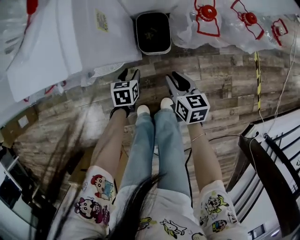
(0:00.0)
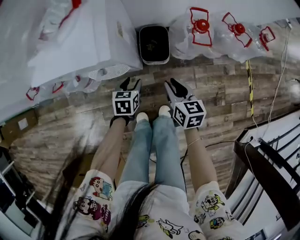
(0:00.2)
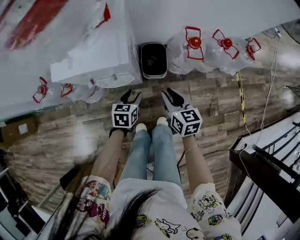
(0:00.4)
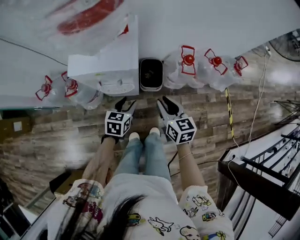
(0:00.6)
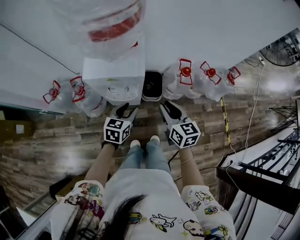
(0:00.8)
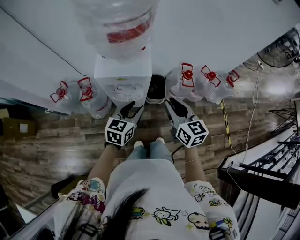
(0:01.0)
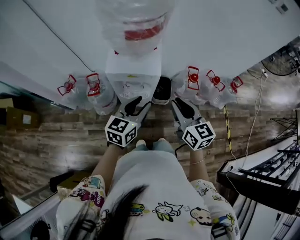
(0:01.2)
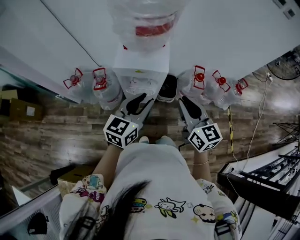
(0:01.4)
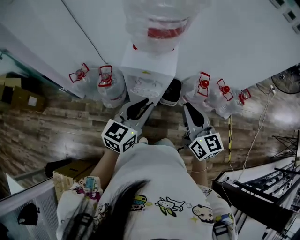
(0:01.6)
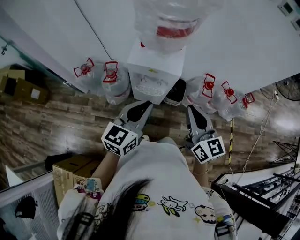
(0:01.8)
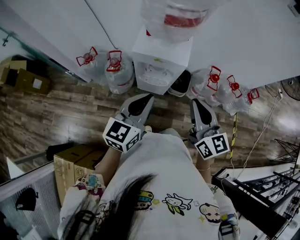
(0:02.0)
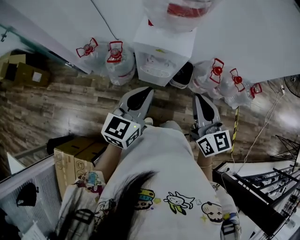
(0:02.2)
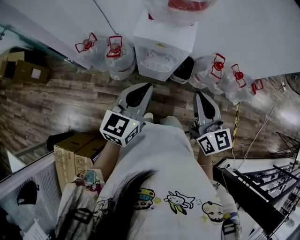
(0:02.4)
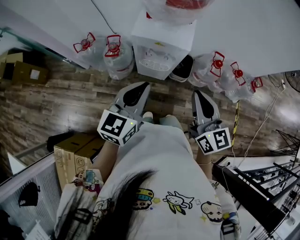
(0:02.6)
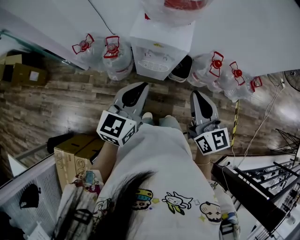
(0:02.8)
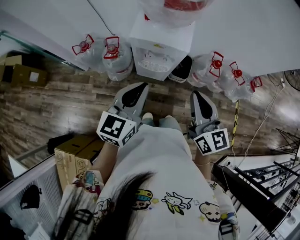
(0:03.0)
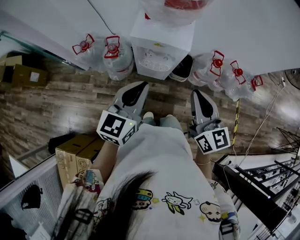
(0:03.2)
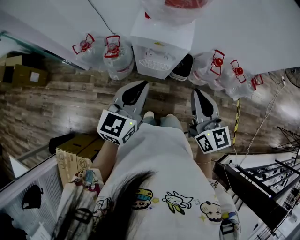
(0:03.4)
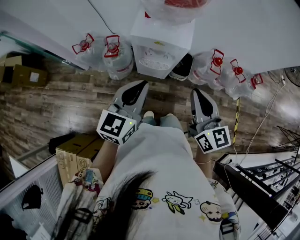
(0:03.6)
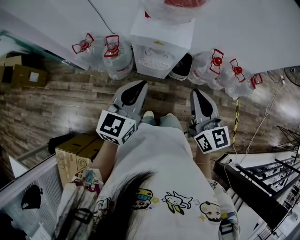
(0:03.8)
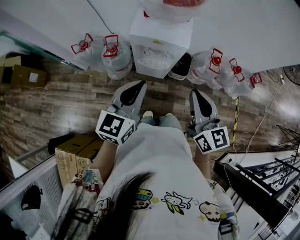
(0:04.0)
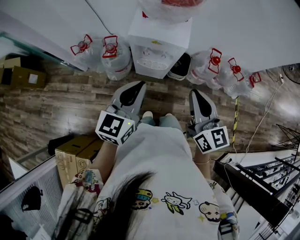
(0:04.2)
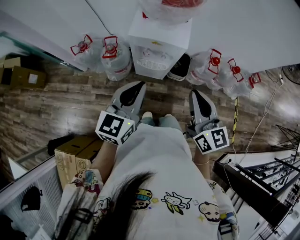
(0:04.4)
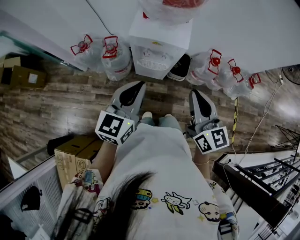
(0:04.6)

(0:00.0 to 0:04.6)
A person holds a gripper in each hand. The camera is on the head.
0:00.0 - 0:01.6: Both grippers move upward, about 50 cm. The left gripper tilts its fingers some 50 degrees upward, and closes its fingers, while the right gripper tips its fingers upward by roughly 30 degrees.
0:01.6 - 0:03.0: The left gripper ends up some 5 cm from where it was.
0:03.0 - 0:04.6: Both grippers stay about where they are.

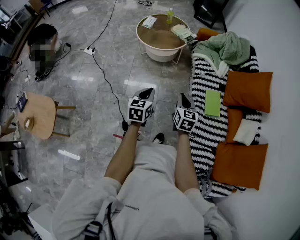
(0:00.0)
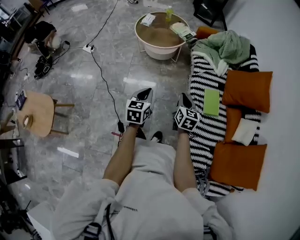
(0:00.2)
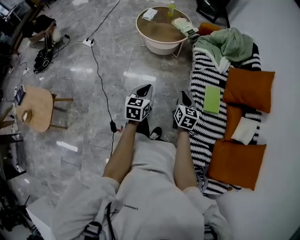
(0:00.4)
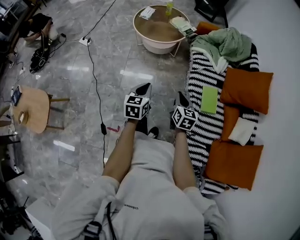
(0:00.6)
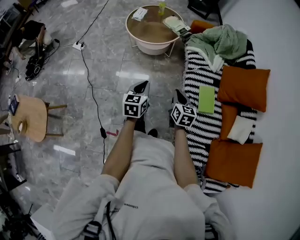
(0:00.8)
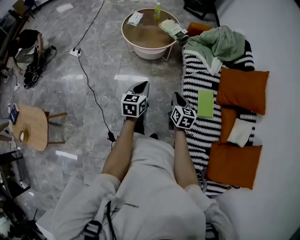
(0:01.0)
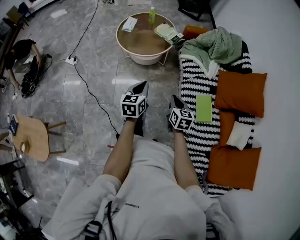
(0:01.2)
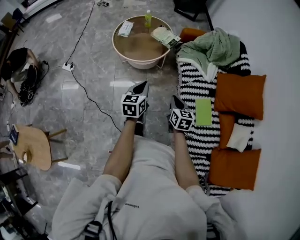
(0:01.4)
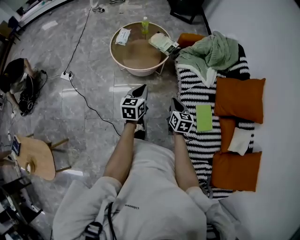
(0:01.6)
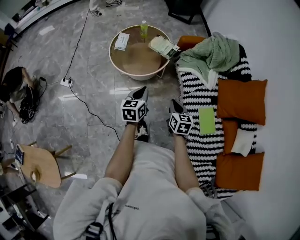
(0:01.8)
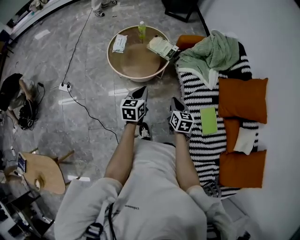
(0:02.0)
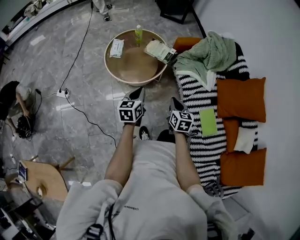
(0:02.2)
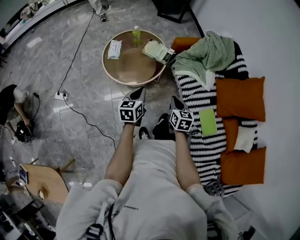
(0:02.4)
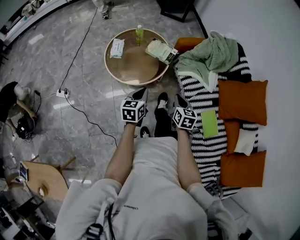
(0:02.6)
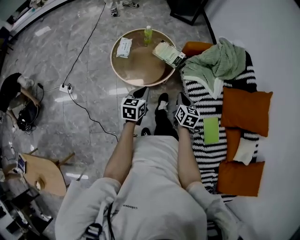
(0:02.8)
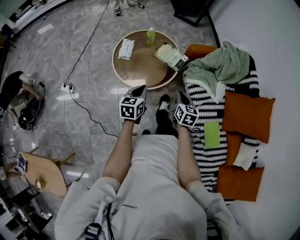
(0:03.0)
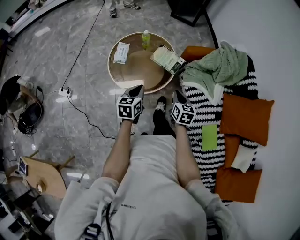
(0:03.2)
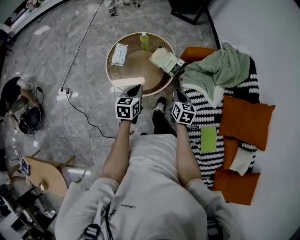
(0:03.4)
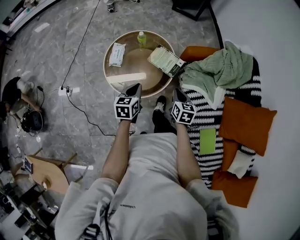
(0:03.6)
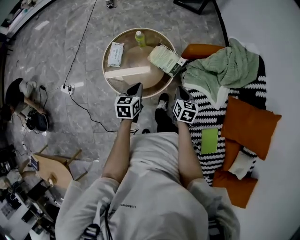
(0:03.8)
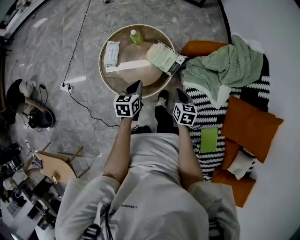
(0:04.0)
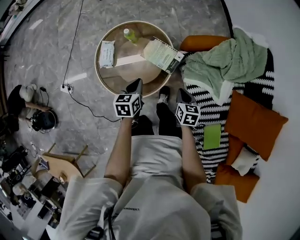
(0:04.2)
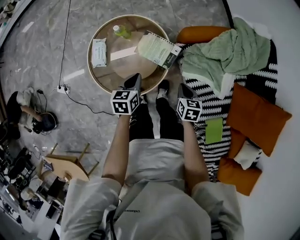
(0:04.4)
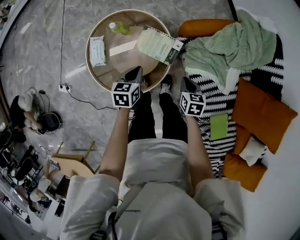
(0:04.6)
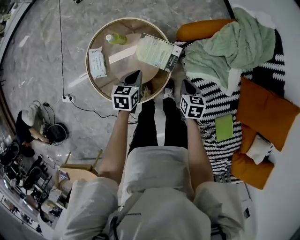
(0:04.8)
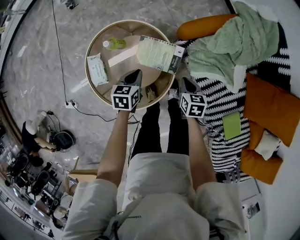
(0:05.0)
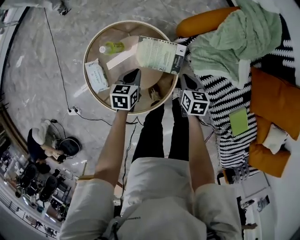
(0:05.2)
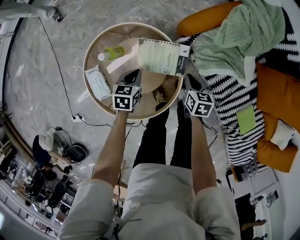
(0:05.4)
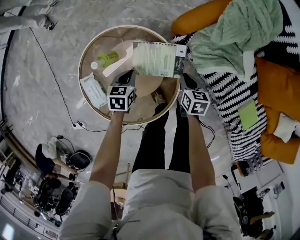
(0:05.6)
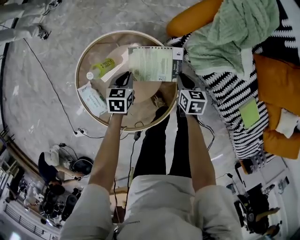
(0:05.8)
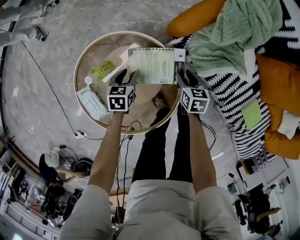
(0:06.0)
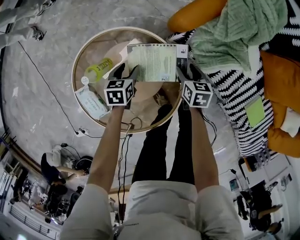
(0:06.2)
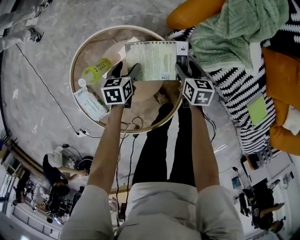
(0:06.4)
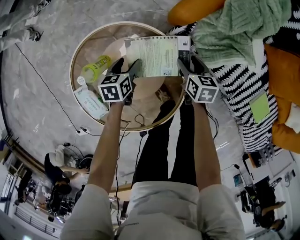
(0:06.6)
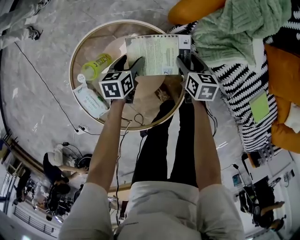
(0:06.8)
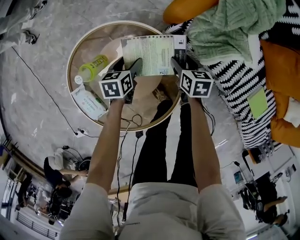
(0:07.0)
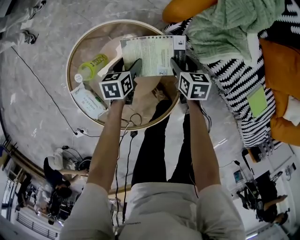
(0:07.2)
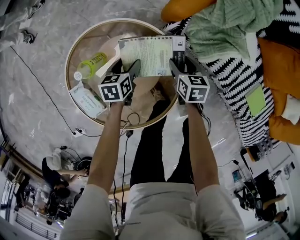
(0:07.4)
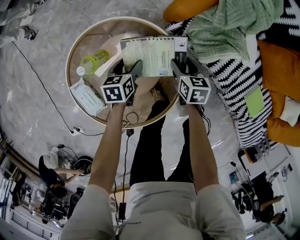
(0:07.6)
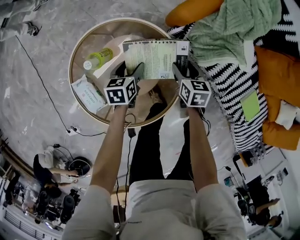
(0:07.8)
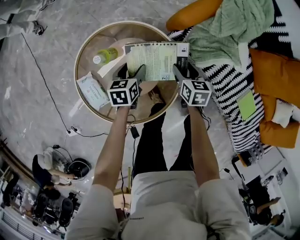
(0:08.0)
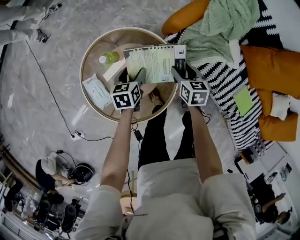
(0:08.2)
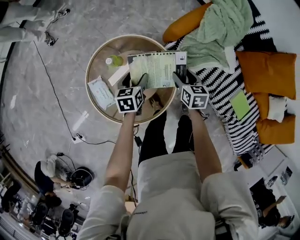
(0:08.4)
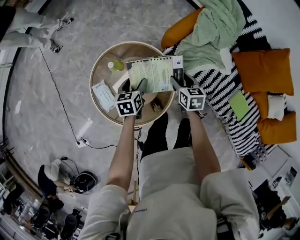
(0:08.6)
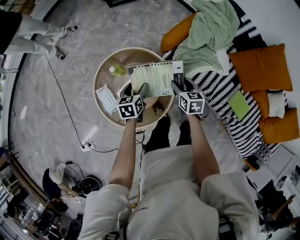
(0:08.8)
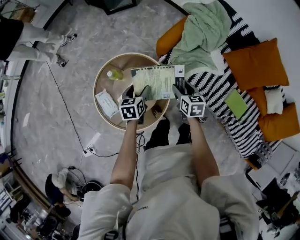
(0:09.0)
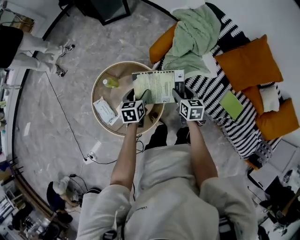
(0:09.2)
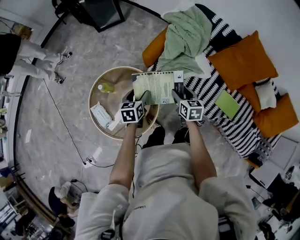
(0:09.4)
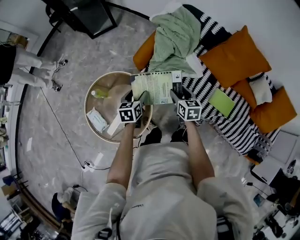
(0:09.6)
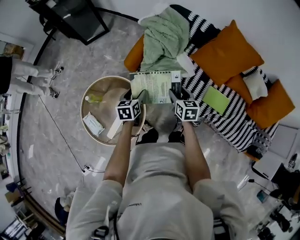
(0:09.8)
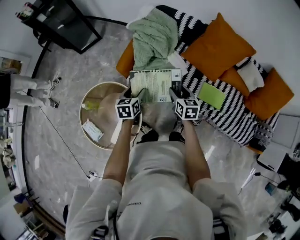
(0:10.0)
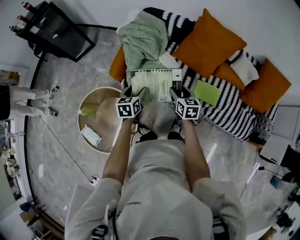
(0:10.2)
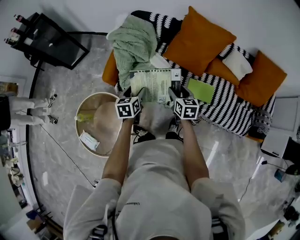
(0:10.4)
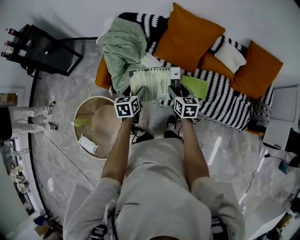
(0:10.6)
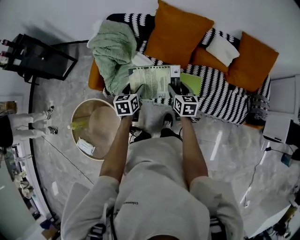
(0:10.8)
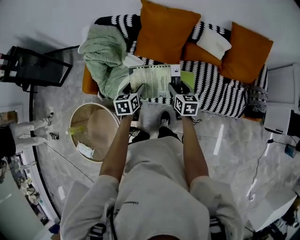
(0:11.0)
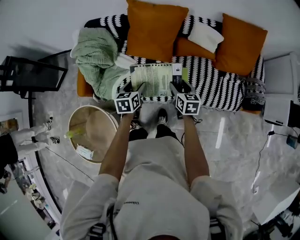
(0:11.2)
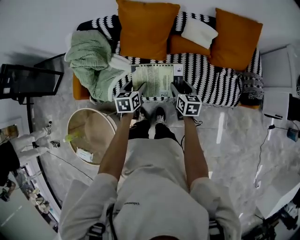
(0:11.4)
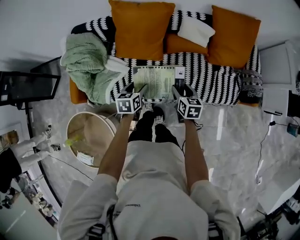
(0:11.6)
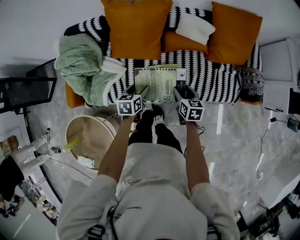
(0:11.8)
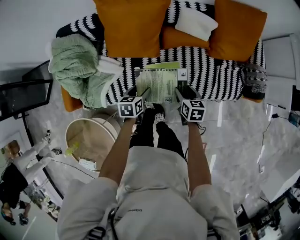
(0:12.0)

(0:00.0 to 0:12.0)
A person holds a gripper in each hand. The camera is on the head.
0:00.0 - 0:01.6: Both grippers move forward, some 30 cm.
0:01.6 - 0:03.0: Both grippers move forward and to the left, roughly 20 cm.
0:03.0 - 0:04.4: The left gripper goes some 30 cm forward and downward. The right gripper is displaced forward, downward and to the right by about 25 cm, and swivels some 20 degrees.
0:04.4 - 0:06.0: The grippers both shift downward by about 20 cm. The left gripper changes its angle by roughly 40 degrees, and opens. The right gripper swivels roughly 30 degrees, and opens.
0:06.0 - 0:07.6: The left gripper opens.
0:07.6 - 0:09.0: The grippers both shift upward by some 25 cm.
0:09.0 - 0:10.4: The right gripper ends up some 40 cm from where it was, and swivels approximately 30 degrees, while the left gripper changes place by approximately 40 cm, and swivels about 30 degrees.
0:10.4 - 0:12.0: The left gripper changes place by about 35 cm, and swivels some 30 degrees. Meanwhile the right gripper ends up about 35 cm from where it was, and changes its angle by roughly 30 degrees.

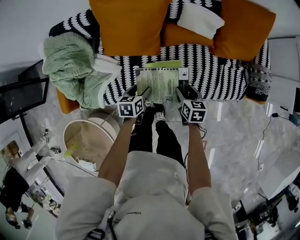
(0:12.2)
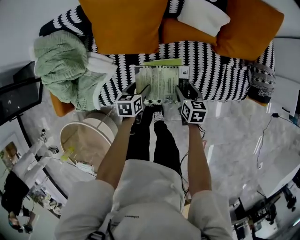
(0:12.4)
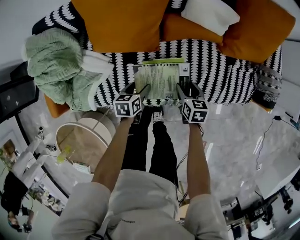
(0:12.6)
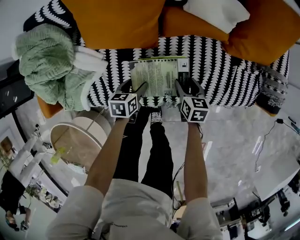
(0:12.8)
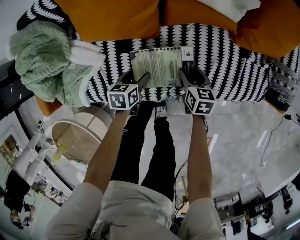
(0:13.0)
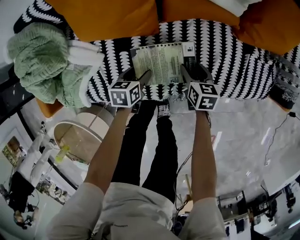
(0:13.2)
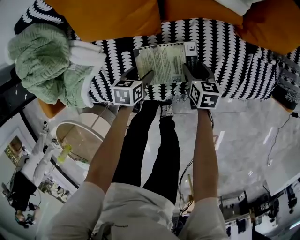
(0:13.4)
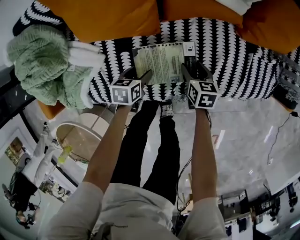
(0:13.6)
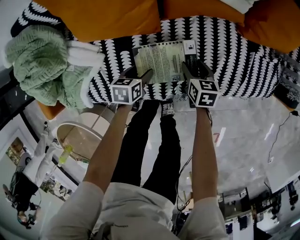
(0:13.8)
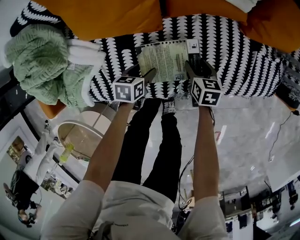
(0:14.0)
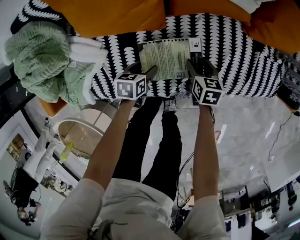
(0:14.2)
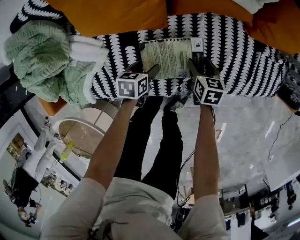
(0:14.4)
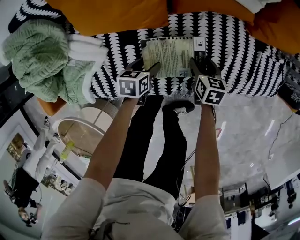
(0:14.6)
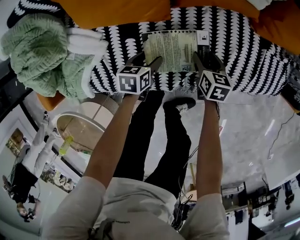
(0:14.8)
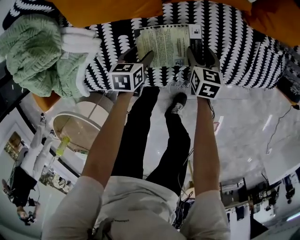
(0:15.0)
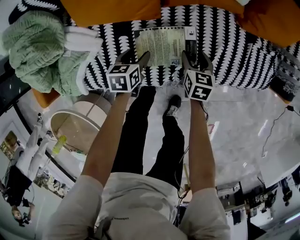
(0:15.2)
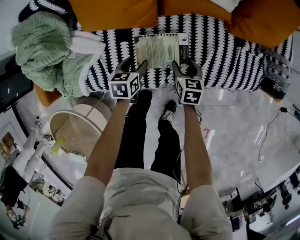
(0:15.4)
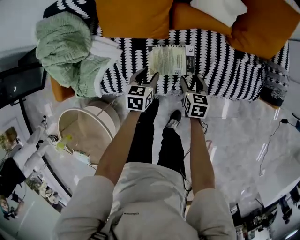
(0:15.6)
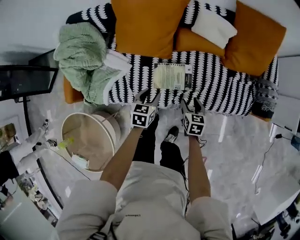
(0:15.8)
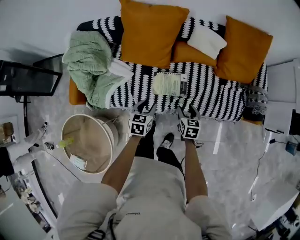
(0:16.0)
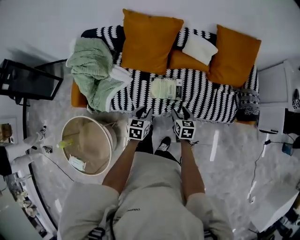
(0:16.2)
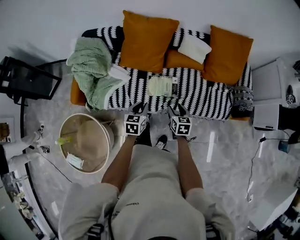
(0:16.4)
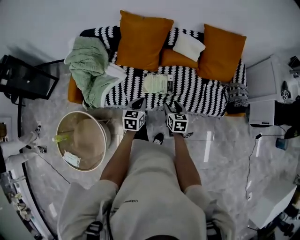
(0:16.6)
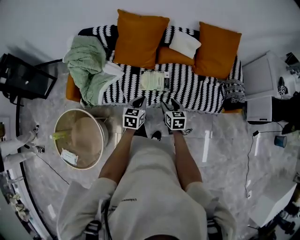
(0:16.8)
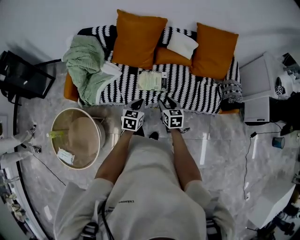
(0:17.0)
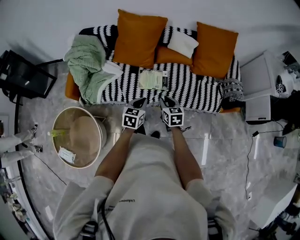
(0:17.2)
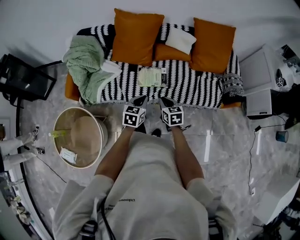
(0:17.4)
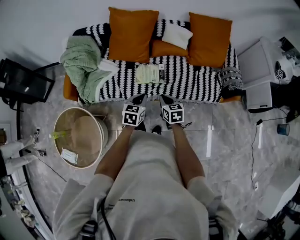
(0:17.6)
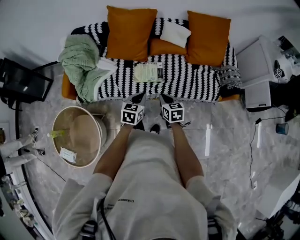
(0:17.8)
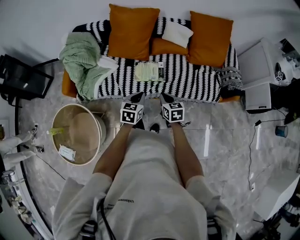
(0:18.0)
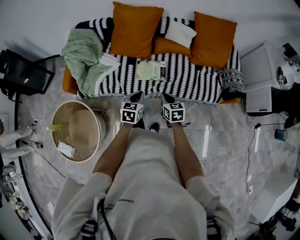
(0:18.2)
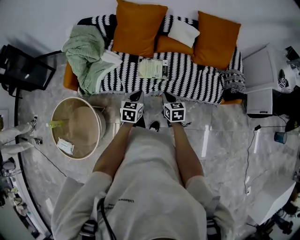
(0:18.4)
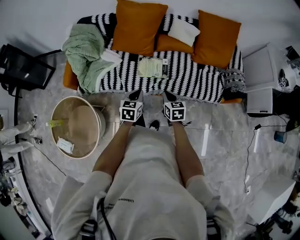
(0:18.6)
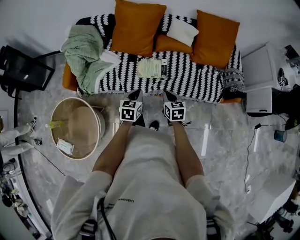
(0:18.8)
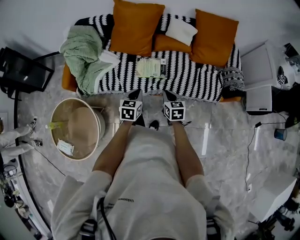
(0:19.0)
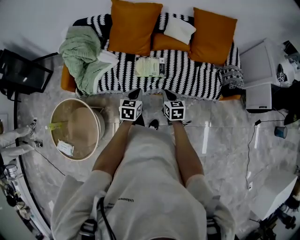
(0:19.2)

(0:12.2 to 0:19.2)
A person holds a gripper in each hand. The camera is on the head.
0:12.2 - 0:13.6: The two grippers go some 25 cm downward.
0:13.6 - 0:15.0: The grippers move only a little.
0:15.0 - 0:16.4: The grippers both shift upward and backward by approximately 40 cm. The left gripper rotates some 20 degrees, and closes up.
0:16.4 - 0:17.8: The left gripper travels to the right and backward by approximately 15 cm, while the right gripper moves backward, some 10 cm, and closes.
0:17.8 - 0:19.2: The grippers stay close to where they were, moving slightly.
